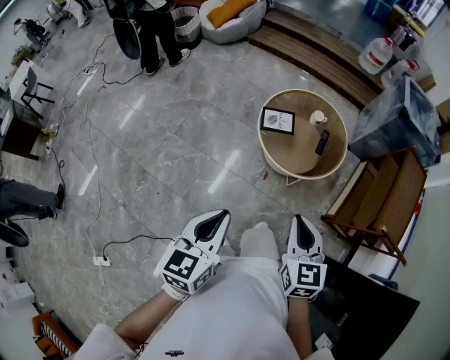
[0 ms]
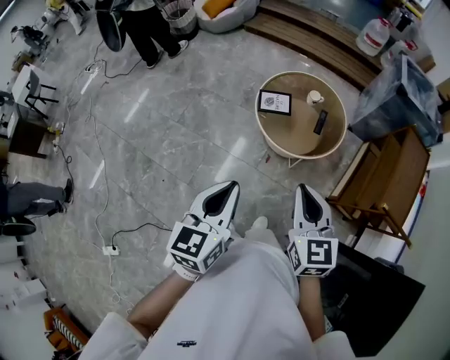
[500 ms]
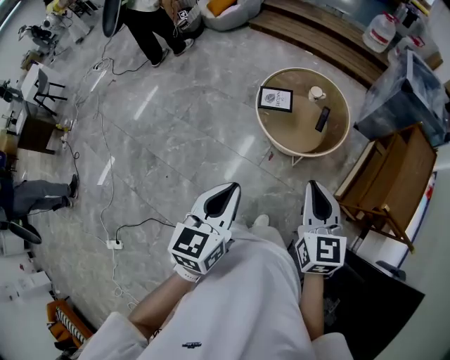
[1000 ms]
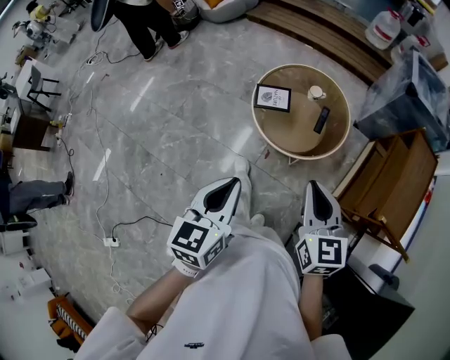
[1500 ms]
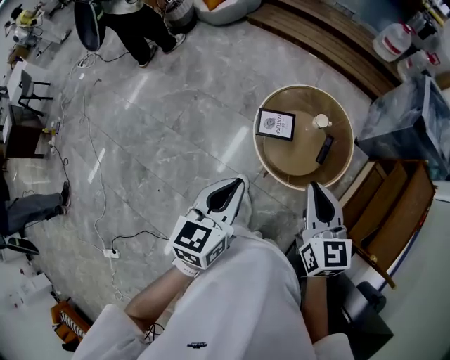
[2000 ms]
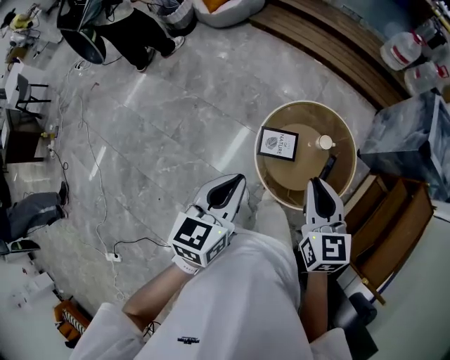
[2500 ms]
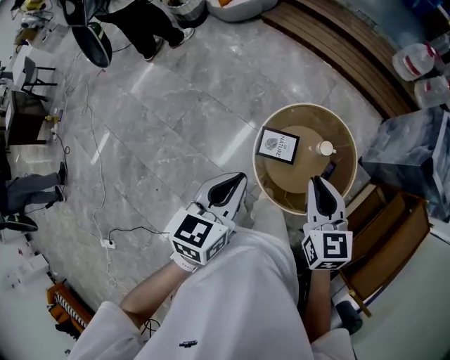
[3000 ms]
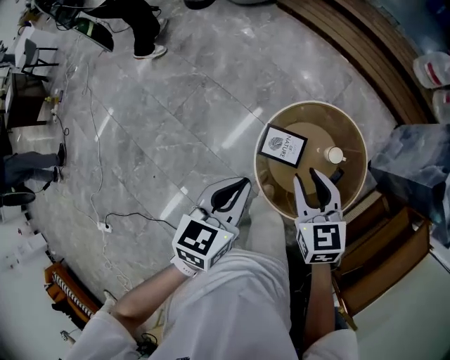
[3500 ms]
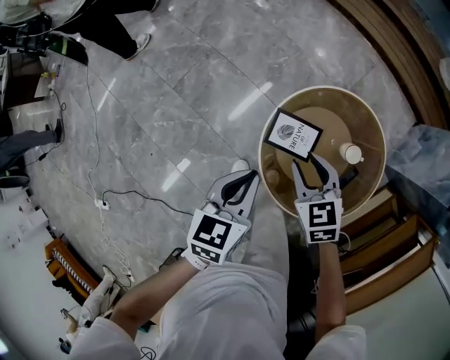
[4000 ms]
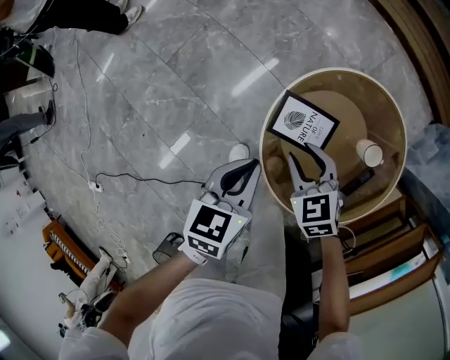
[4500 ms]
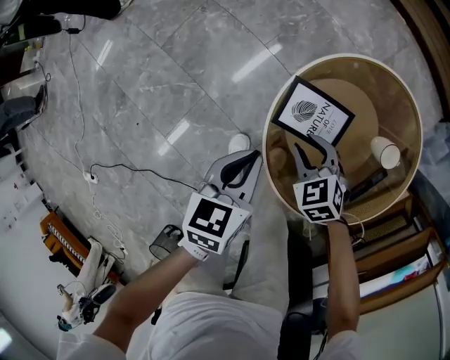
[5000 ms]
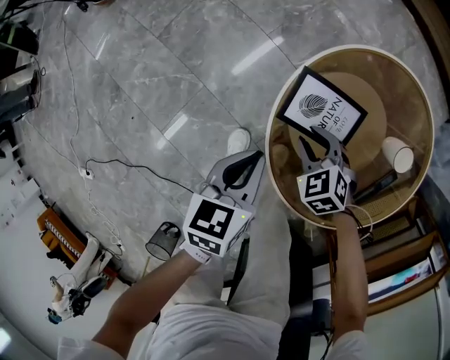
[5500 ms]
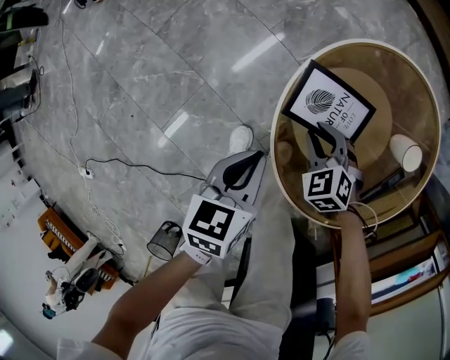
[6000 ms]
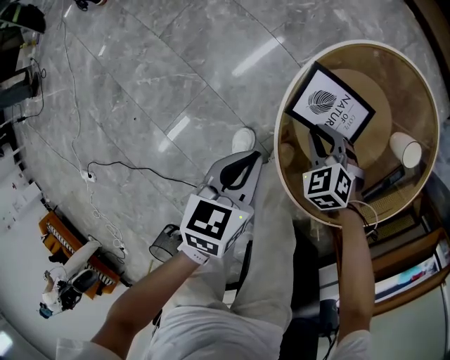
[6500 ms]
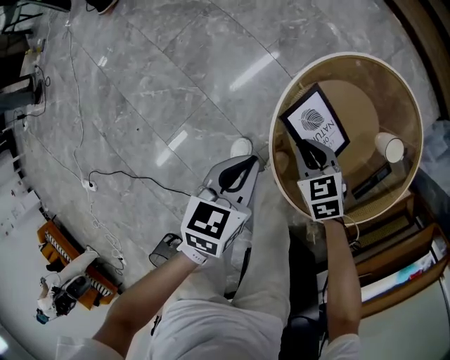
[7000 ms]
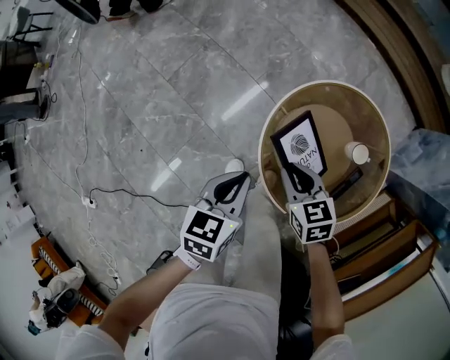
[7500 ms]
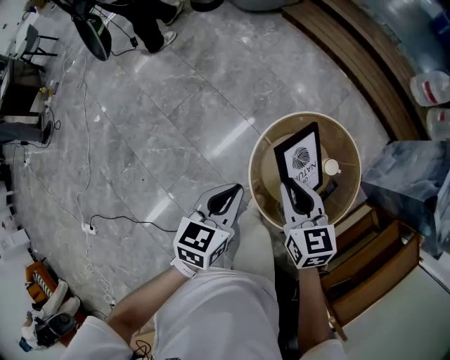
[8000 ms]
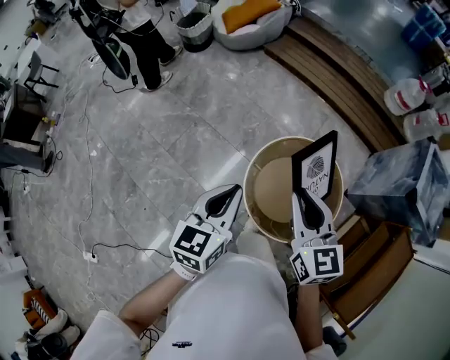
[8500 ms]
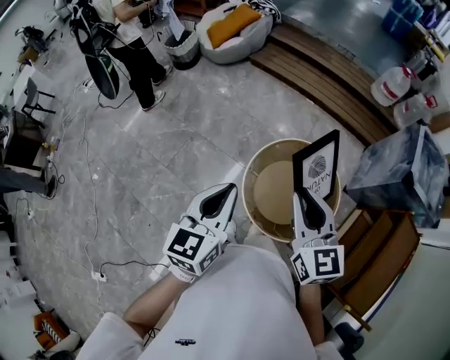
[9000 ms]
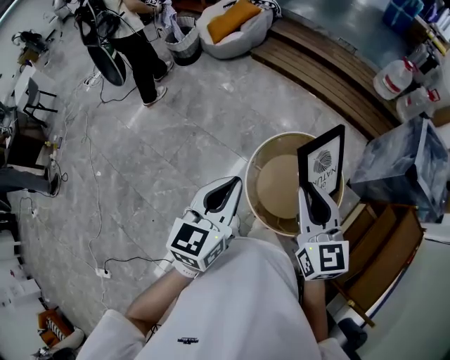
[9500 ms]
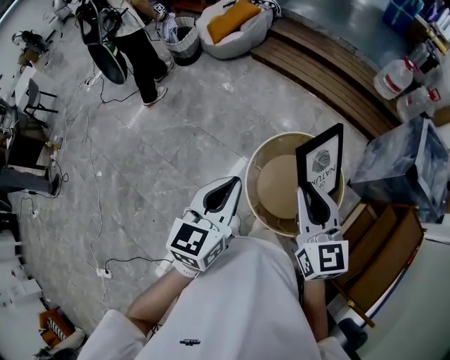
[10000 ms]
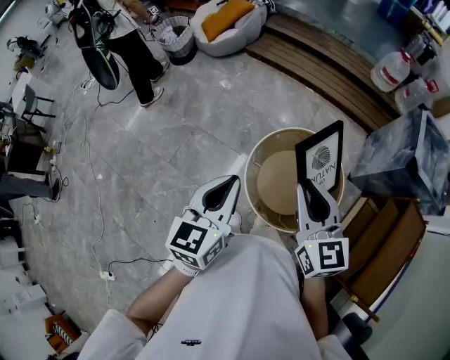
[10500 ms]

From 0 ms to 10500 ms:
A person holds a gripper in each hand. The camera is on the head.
From 0 ms to 2000 ms: Both grippers move forward, about 25 cm.
From 2000 ms to 4000 ms: The left gripper is displaced forward and downward by roughly 30 cm, and changes its angle by about 20 degrees. The right gripper travels downward and forward by some 40 cm, rotates about 40 degrees, and opens its fingers.
From 4000 ms to 6500 ms: The grippers both shift downward by about 30 cm. The right gripper rotates about 40 degrees.
From 6500 ms to 8500 ms: Both grippers move upward, approximately 50 cm. The left gripper rotates about 30 degrees. The right gripper tips its fingers upward by about 50 degrees.
From 8500 ms to 10500 ms: The right gripper changes place by some 5 cm. The left gripper shifts by some 5 cm.

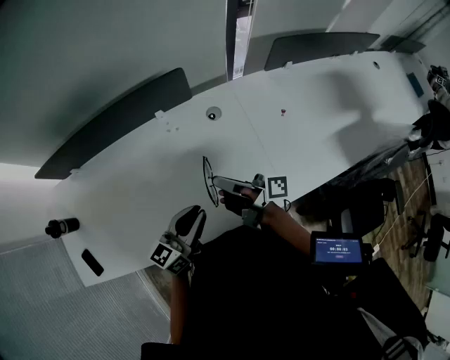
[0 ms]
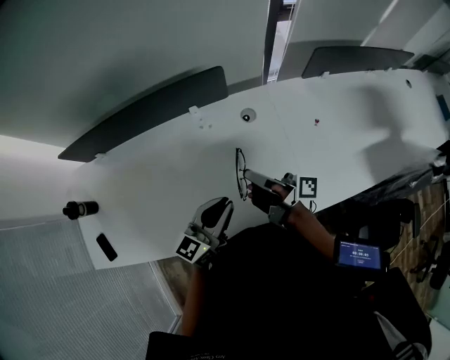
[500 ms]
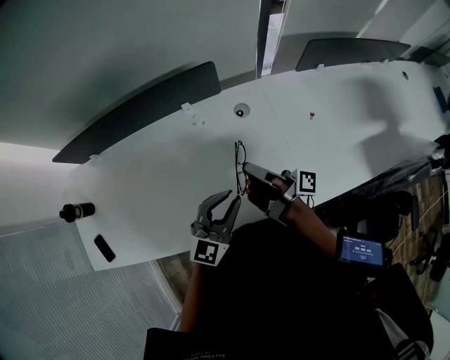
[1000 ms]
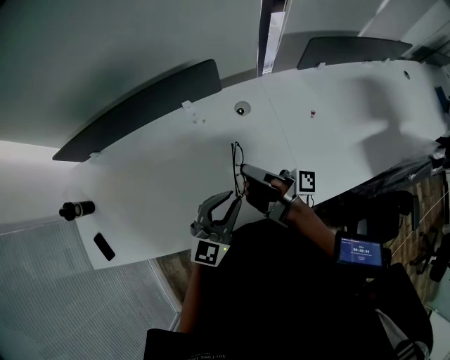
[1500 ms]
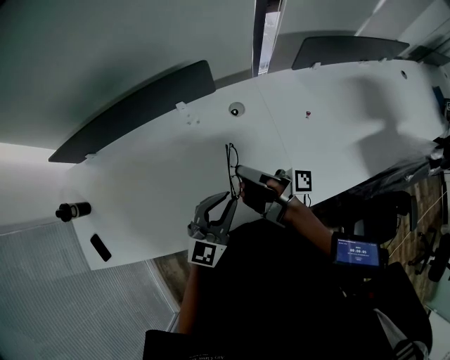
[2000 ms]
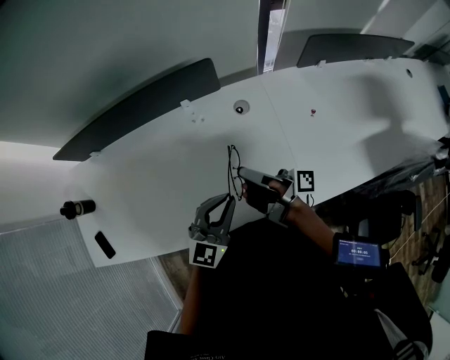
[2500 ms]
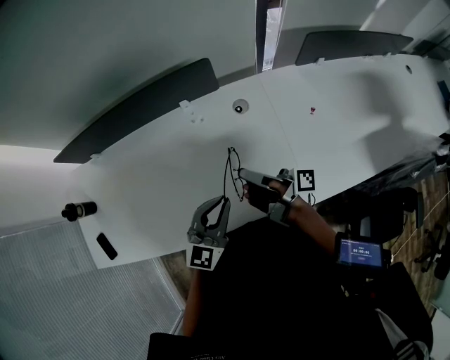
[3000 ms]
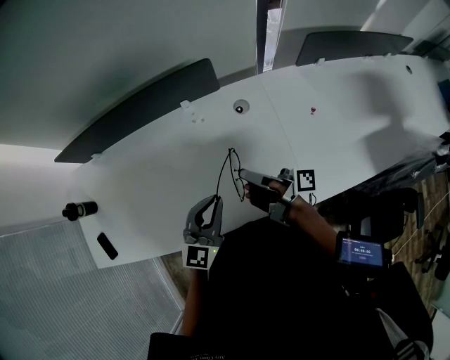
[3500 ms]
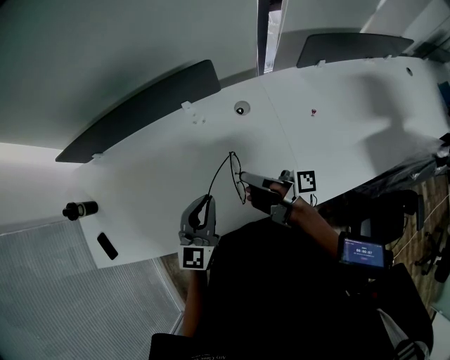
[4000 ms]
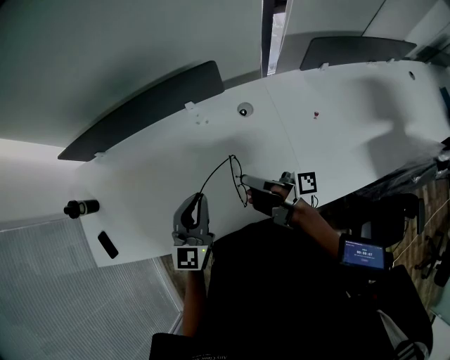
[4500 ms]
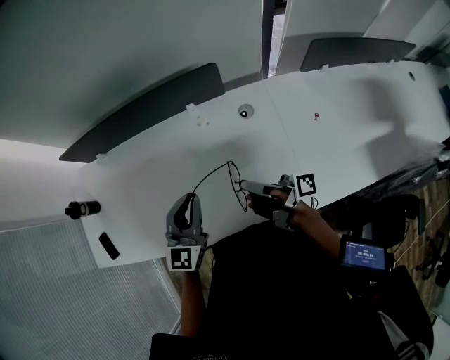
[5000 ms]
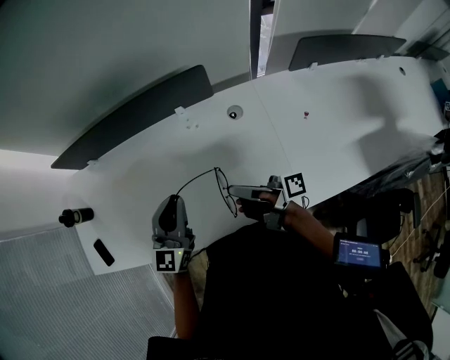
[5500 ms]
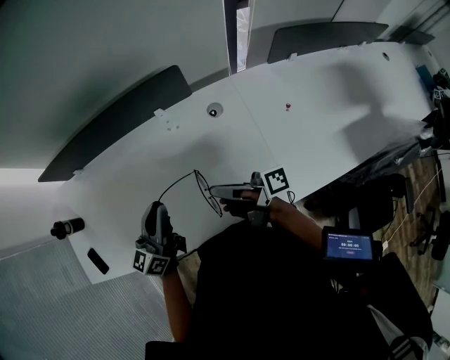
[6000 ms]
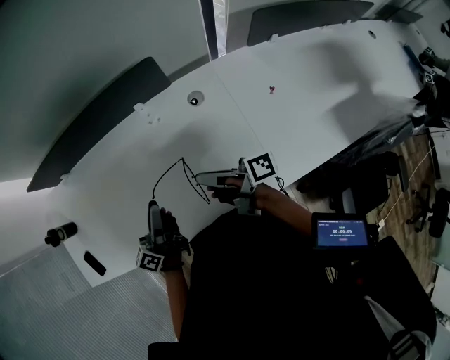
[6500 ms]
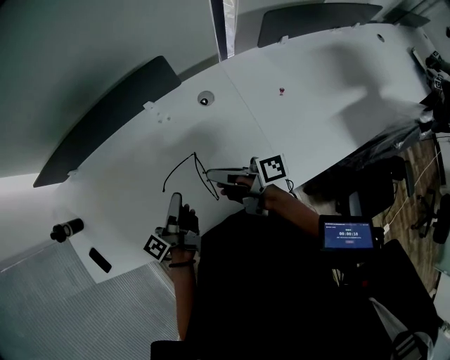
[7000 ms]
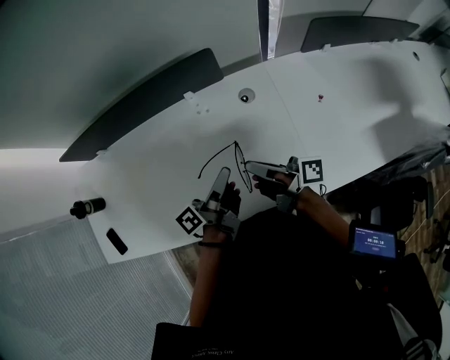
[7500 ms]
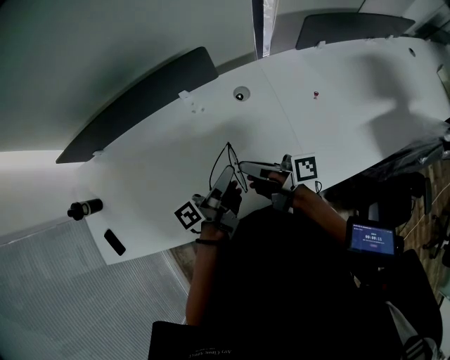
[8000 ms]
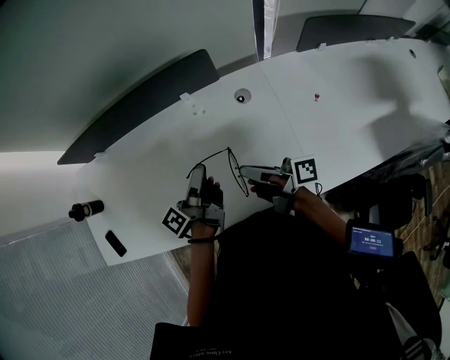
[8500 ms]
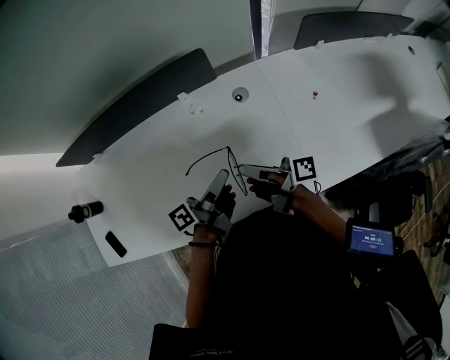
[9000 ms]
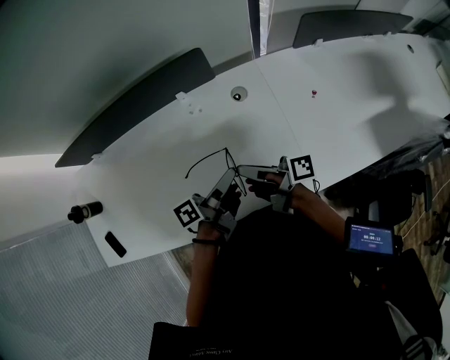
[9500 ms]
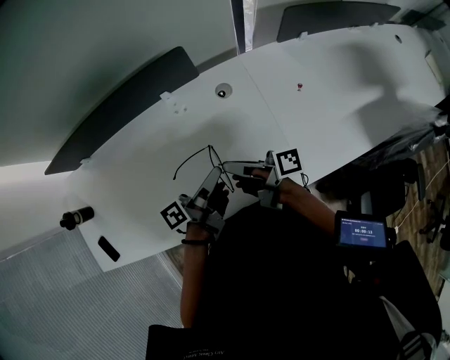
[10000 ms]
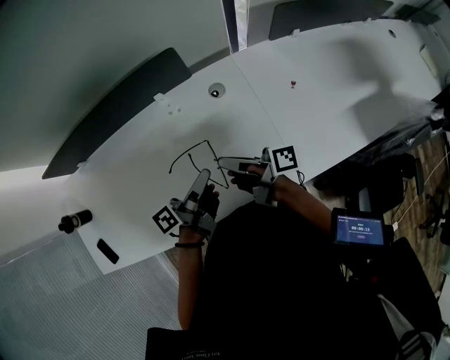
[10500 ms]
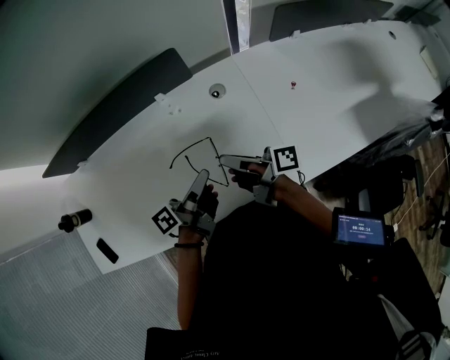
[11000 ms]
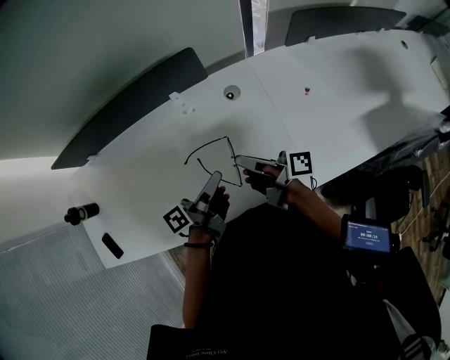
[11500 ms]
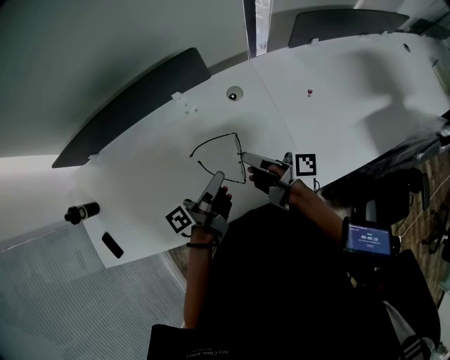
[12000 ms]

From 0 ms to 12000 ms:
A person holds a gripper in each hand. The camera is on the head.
From 0 ms to 2000 ms: The left gripper shifts by about 5 cm, and rolls clockwise, seen from behind, by about 40 degrees.
From 2000 ms to 4000 ms: The left gripper moves some 10 cm.
From 4000 ms to 6000 ms: The left gripper shifts by approximately 10 cm, and turns by approximately 40 degrees.
From 6000 ms to 8000 ms: The left gripper ends up approximately 15 cm from where it was, and twists approximately 60 degrees counterclockwise, seen from behind.
From 8000 ms to 10000 ms: The left gripper closes up.

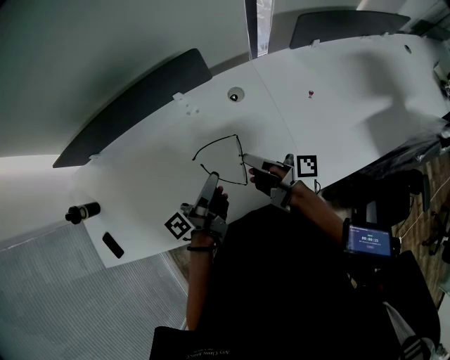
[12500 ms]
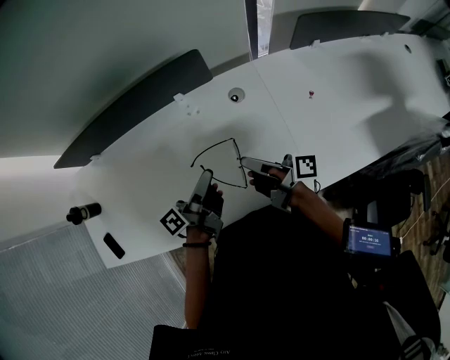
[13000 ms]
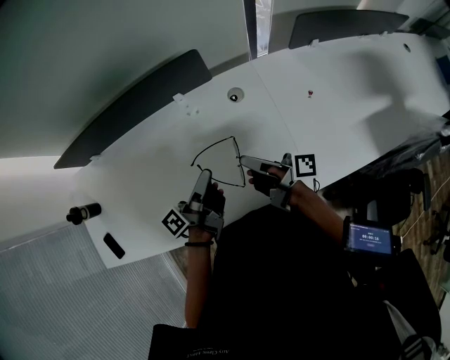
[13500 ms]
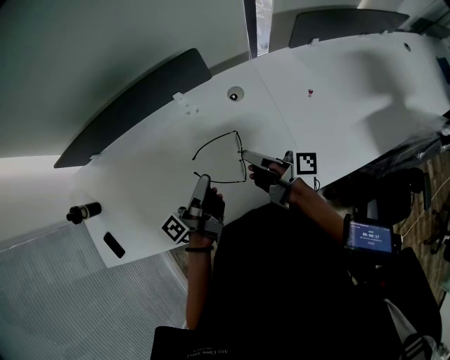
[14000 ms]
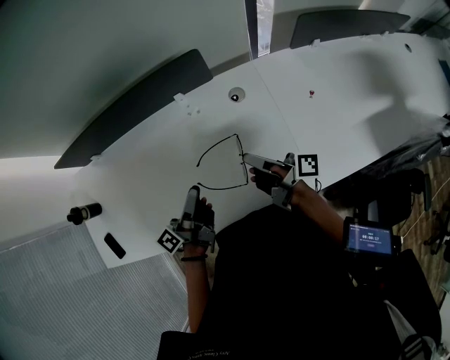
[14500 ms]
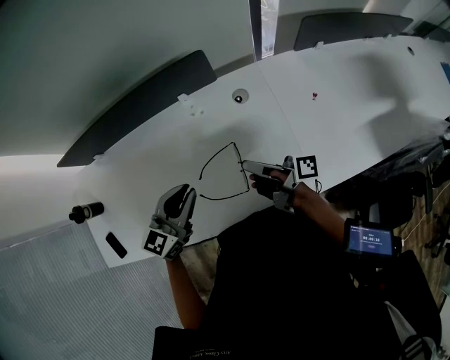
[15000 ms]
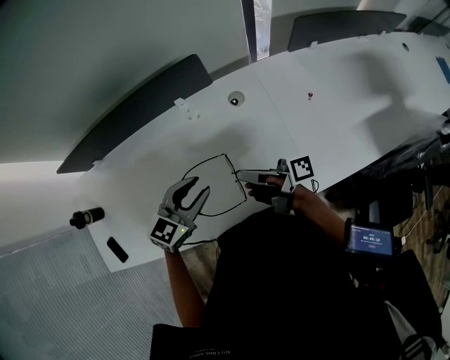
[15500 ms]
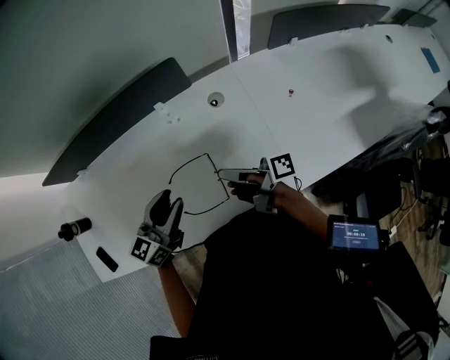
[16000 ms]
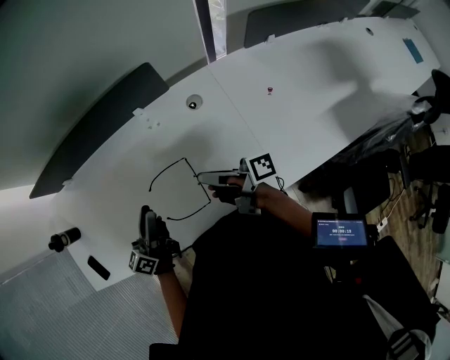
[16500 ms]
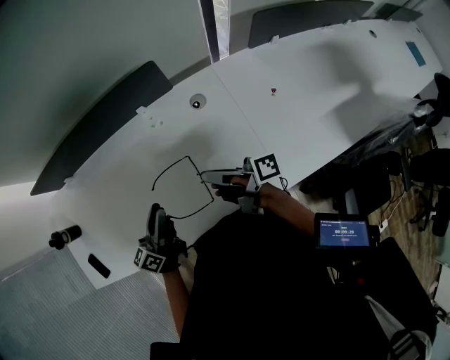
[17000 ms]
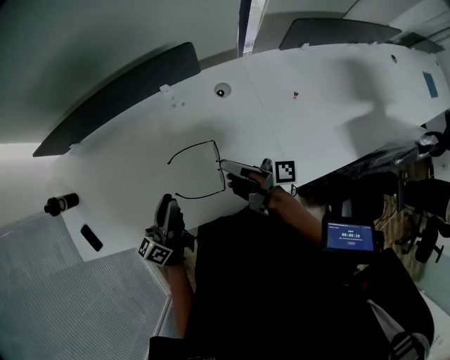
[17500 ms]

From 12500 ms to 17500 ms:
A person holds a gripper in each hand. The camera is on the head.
From 12500 ms to 15000 ms: The left gripper moves about 10 cm, and twists approximately 70 degrees clockwise, seen from behind.
From 15000 ms to 17500 ms: The left gripper ends up approximately 5 cm from where it was, and rotates around the line of its fingers by some 40 degrees, counterclockwise from behind.
